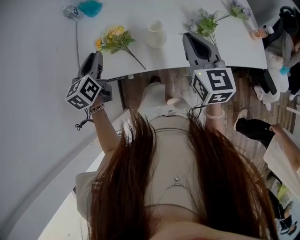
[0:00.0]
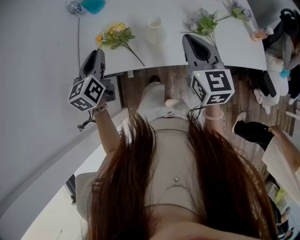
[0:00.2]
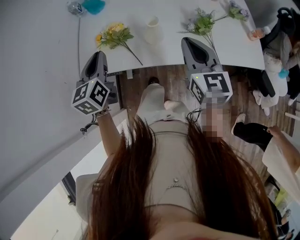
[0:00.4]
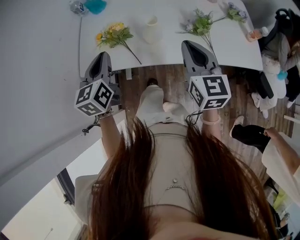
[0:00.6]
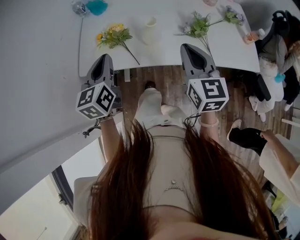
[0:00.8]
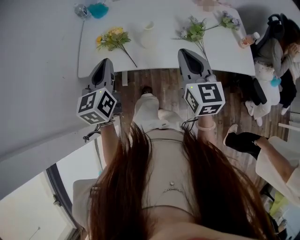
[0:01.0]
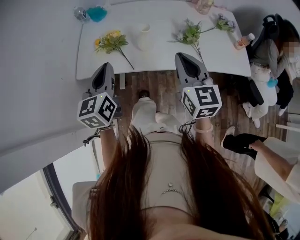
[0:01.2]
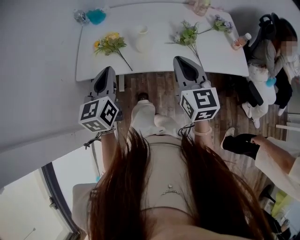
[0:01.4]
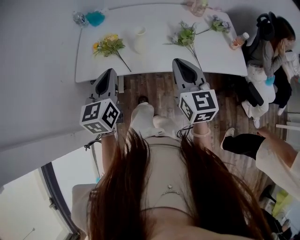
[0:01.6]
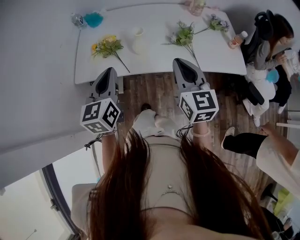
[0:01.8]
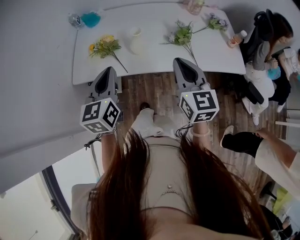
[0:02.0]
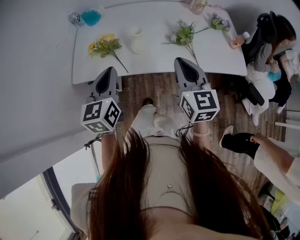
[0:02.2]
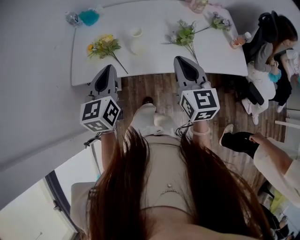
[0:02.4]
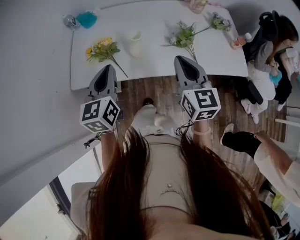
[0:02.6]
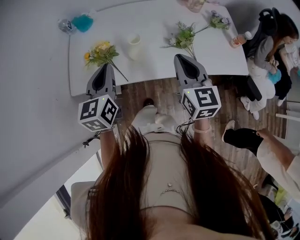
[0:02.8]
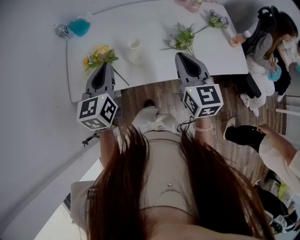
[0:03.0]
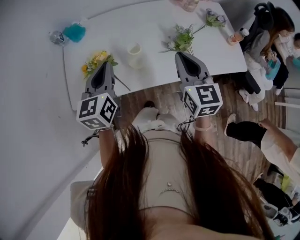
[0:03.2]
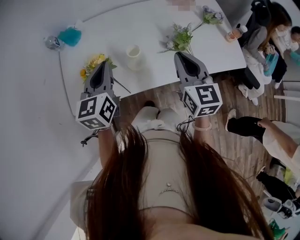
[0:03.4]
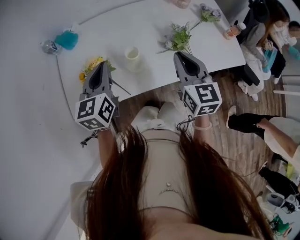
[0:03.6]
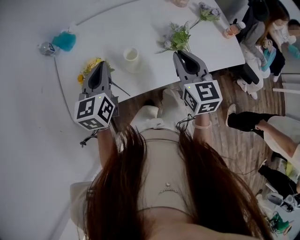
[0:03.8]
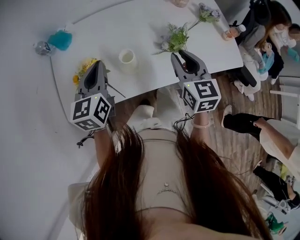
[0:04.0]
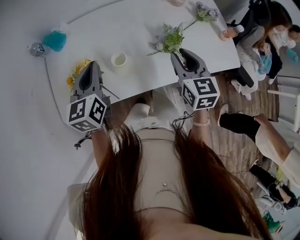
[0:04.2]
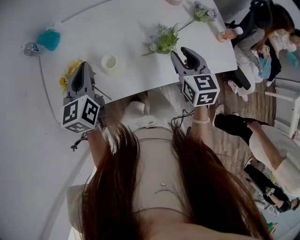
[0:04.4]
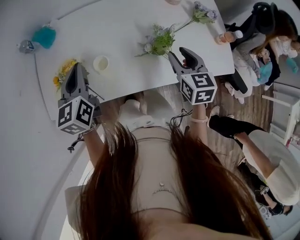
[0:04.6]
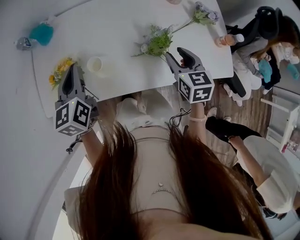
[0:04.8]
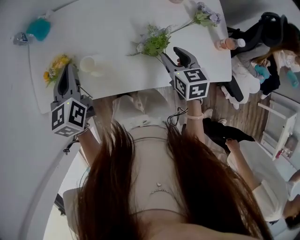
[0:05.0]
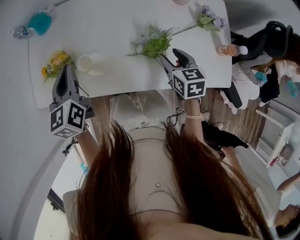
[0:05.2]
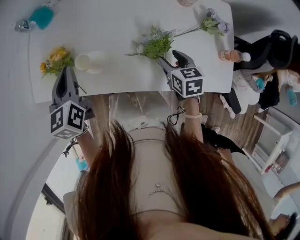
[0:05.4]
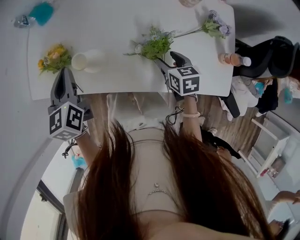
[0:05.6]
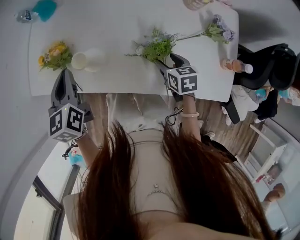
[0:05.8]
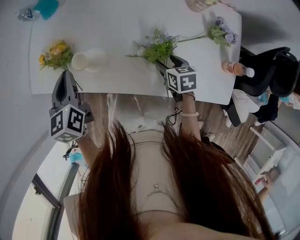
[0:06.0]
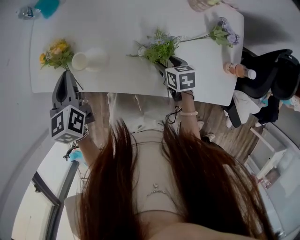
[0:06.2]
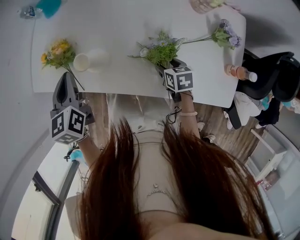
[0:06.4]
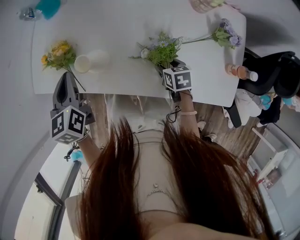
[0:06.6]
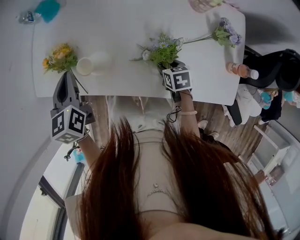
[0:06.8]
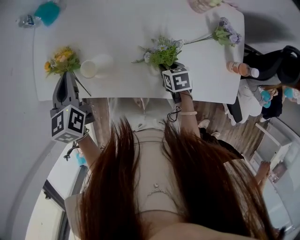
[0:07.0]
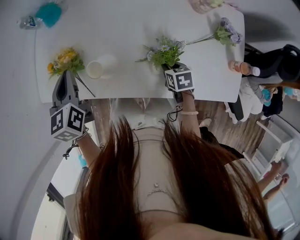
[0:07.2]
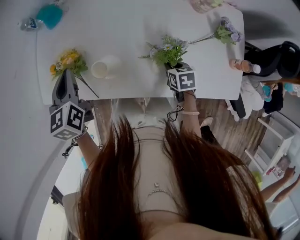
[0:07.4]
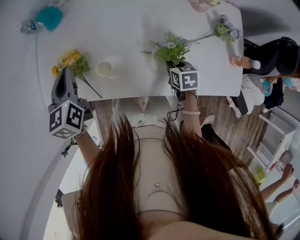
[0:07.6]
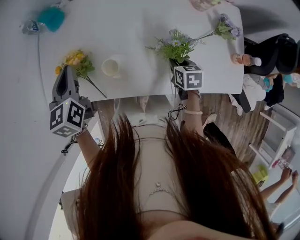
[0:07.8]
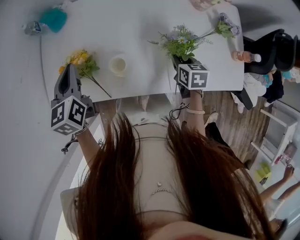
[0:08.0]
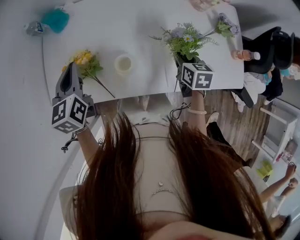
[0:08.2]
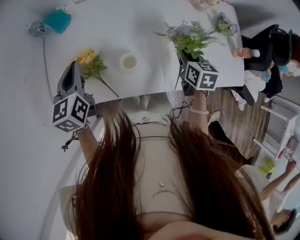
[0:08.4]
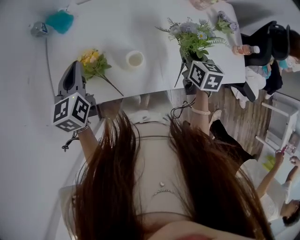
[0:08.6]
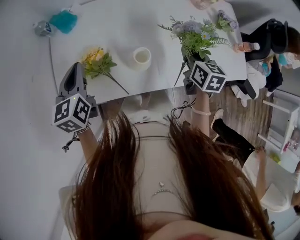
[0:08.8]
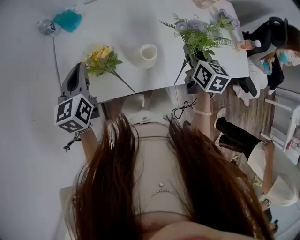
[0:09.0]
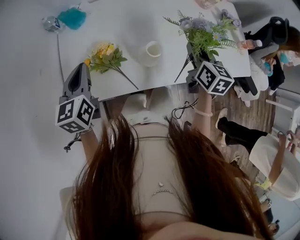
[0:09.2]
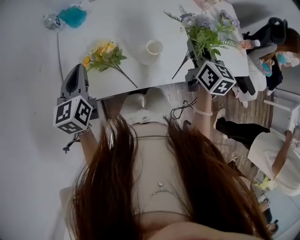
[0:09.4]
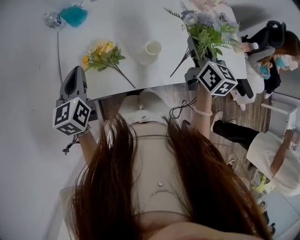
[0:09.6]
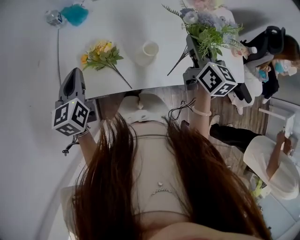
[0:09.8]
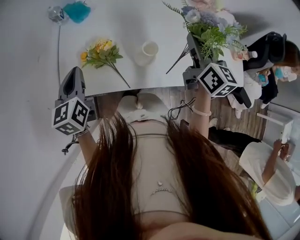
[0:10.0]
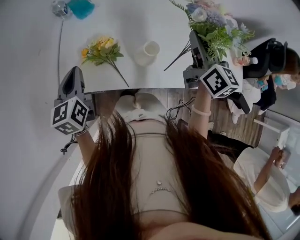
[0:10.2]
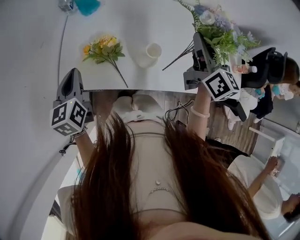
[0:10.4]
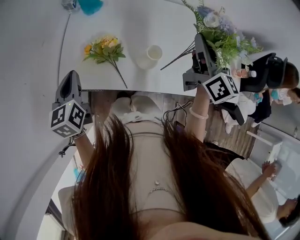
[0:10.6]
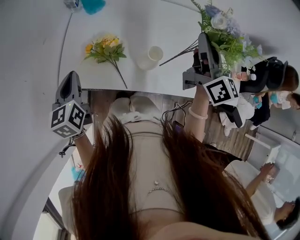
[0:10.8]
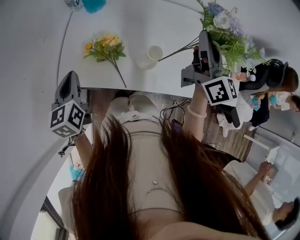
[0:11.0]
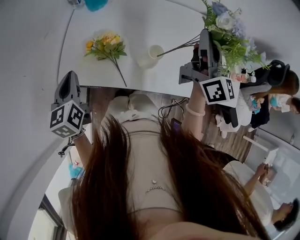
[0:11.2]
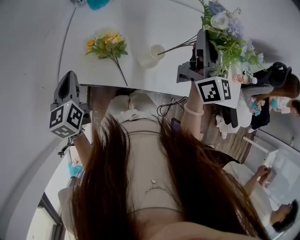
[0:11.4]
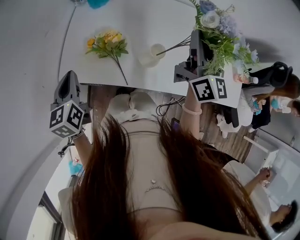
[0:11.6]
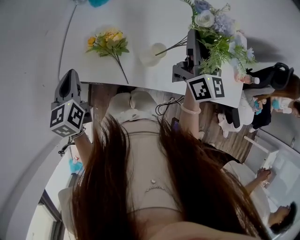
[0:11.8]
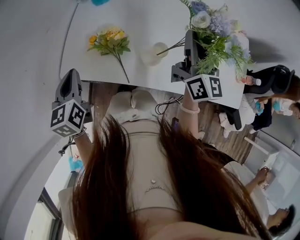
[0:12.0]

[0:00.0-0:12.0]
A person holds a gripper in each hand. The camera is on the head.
0:00.0 to 0:01.6: The right gripper travels backward by about 15 cm, while the left gripper travels backward, to the right and upward by approximately 25 cm.
0:01.6 to 0:03.0: The grippers both shift forward by about 15 cm.
0:03.0 to 0:04.4: The right gripper is displaced forward, to the right and downward by about 15 cm, and opens its fingers. Meanwhile the left gripper shifts some 10 cm forward.
0:04.4 to 0:06.0: The right gripper travels downward by roughly 20 cm, changes its angle by some 40 degrees, and opens. The left gripper heads downward, covering about 5 cm, and swivels some 30 degrees.
0:06.0 to 0:07.6: The right gripper closes its fingers, while the left gripper goes about 10 cm forward.
0:07.6 to 0:09.0: The right gripper is displaced upward and to the left by roughly 20 cm, and changes its angle by roughly 40 degrees; the left gripper moves to the left, roughly 10 cm.
0:09.0 to 0:10.4: The right gripper is displaced upward by about 15 cm, and turns by some 30 degrees. Meanwhile the left gripper is displaced backward by some 10 cm.
0:10.4 to 0:12.0: The grippers stay close to where they were, moving slightly.

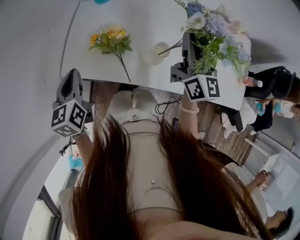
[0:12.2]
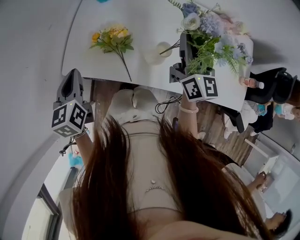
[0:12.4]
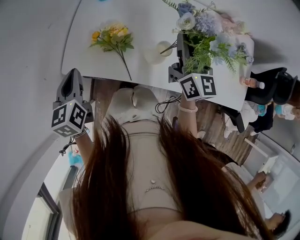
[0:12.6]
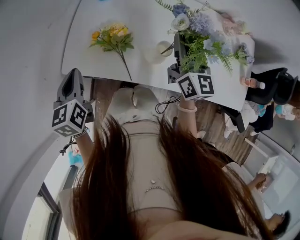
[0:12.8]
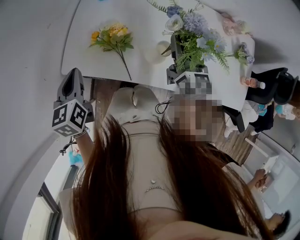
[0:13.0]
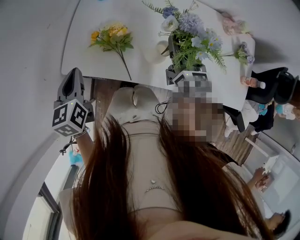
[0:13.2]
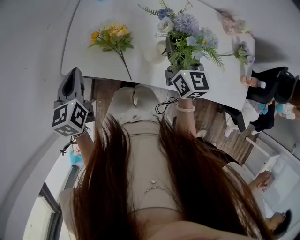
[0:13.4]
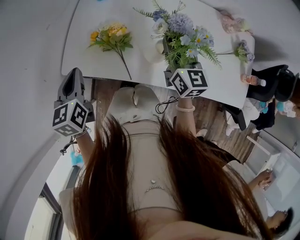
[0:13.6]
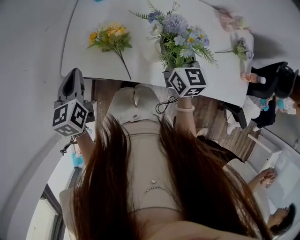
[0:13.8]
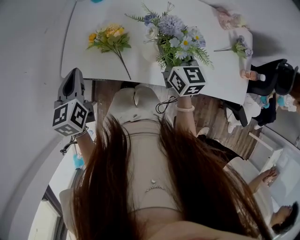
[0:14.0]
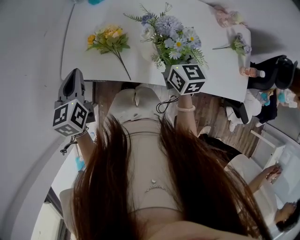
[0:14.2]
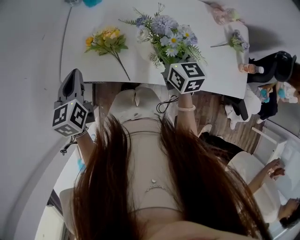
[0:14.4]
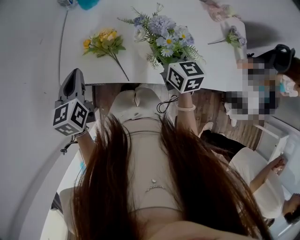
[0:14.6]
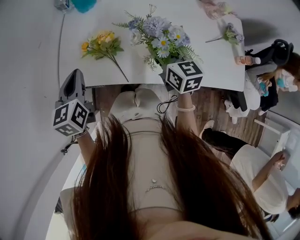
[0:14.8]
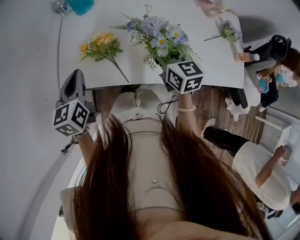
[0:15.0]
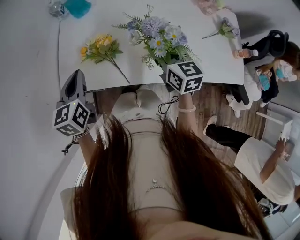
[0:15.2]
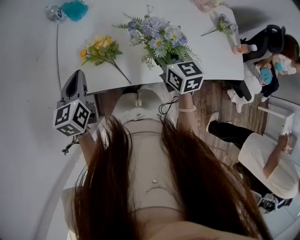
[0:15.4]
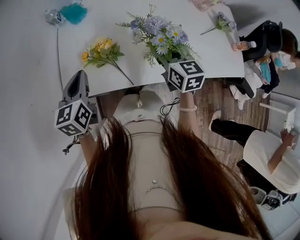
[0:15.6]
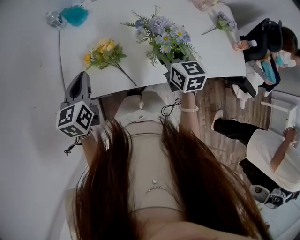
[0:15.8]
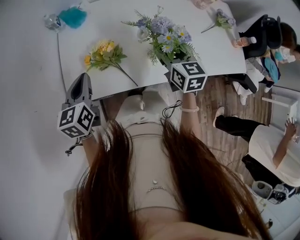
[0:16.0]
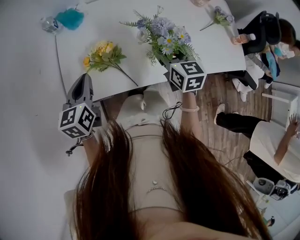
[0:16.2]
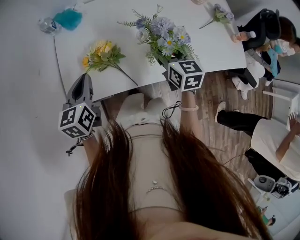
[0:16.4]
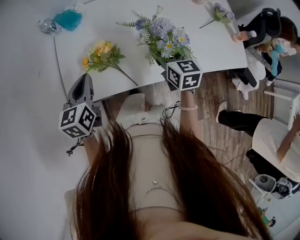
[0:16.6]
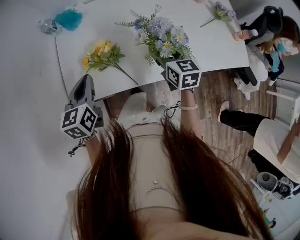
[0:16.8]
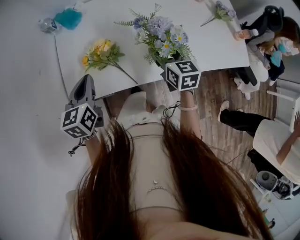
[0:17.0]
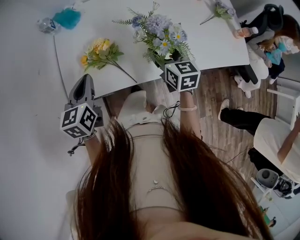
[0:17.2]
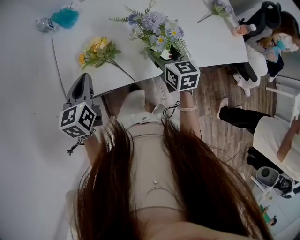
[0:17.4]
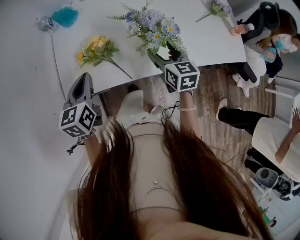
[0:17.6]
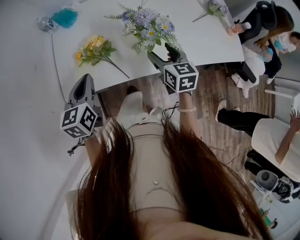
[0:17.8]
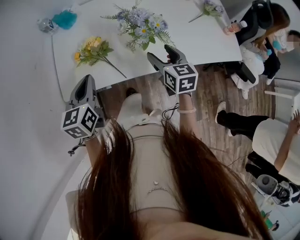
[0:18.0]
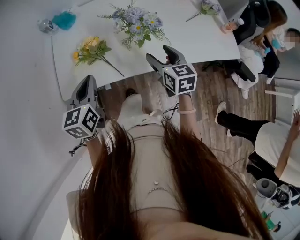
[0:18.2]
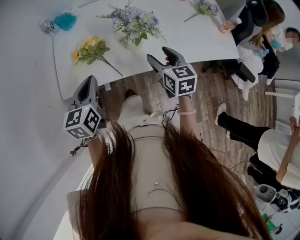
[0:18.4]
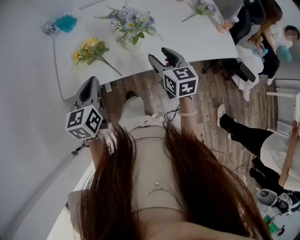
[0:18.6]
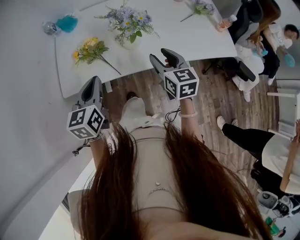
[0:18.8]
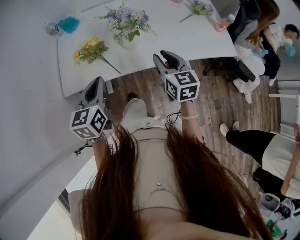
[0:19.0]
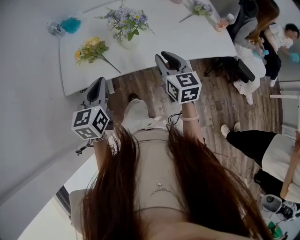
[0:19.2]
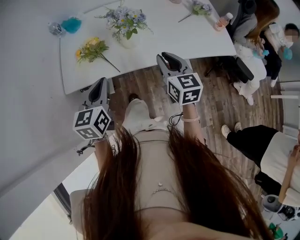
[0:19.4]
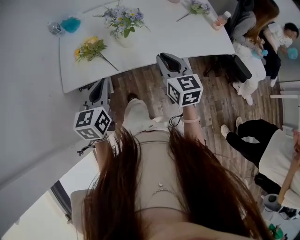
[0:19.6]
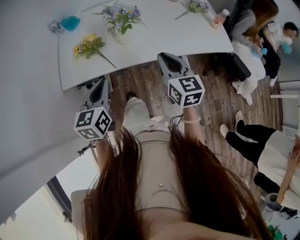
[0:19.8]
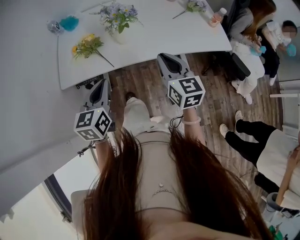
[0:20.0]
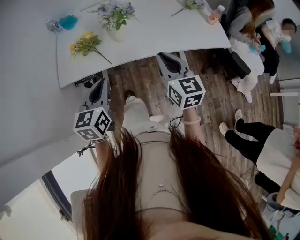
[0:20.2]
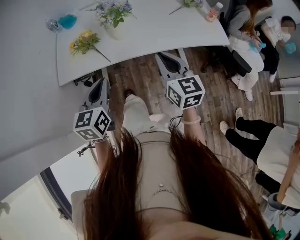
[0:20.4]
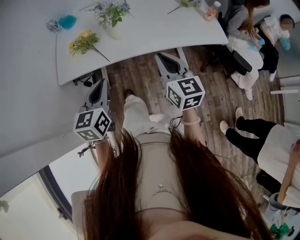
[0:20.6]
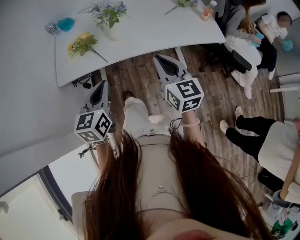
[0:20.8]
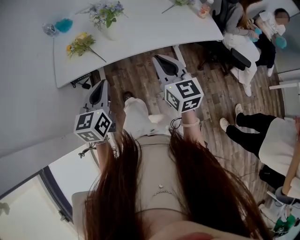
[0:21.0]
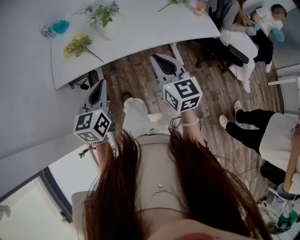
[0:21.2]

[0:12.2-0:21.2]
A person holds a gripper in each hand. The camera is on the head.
0:12.2 to 0:13.8: The right gripper heads downward and to the left, covering roughly 10 cm, and swivels about 20 degrees.
0:13.8 to 0:15.2: The grippers move only a little.
0:15.2 to 0:16.6: The grippers stay close to where they were, moving slightly.
0:16.6 to 0:18.2: The right gripper goes roughly 10 cm backward. The left gripper shifts approximately 10 cm backward and to the right.
0:18.2 to 0:19.8: The left gripper is displaced backward and to the right by roughly 15 cm; the right gripper heads backward, upward and to the right, covering about 15 cm, and closes.
0:19.8 to 0:21.2: Both grippers travel together backward, approximately 10 cm.

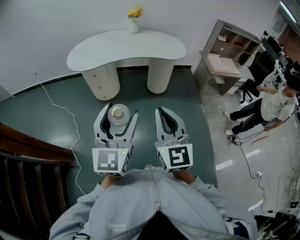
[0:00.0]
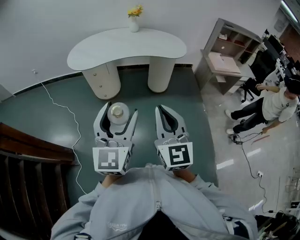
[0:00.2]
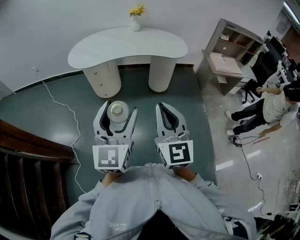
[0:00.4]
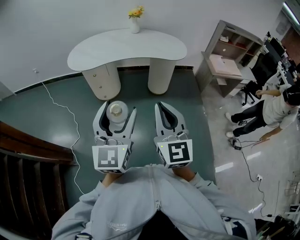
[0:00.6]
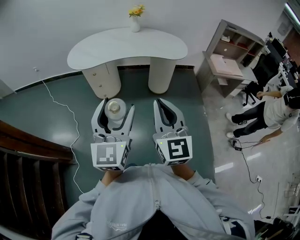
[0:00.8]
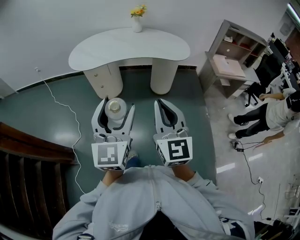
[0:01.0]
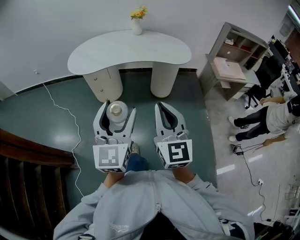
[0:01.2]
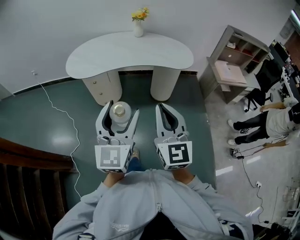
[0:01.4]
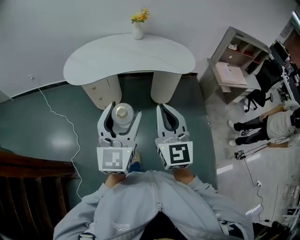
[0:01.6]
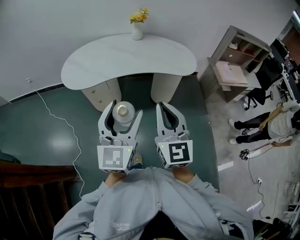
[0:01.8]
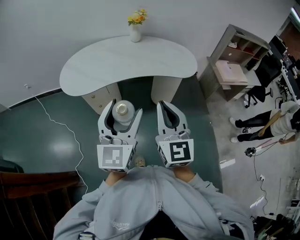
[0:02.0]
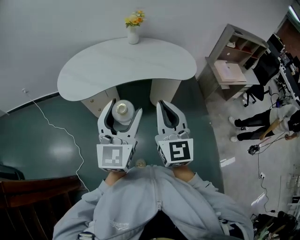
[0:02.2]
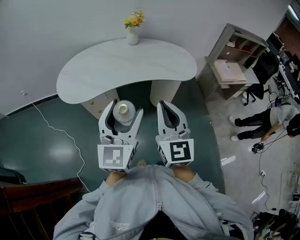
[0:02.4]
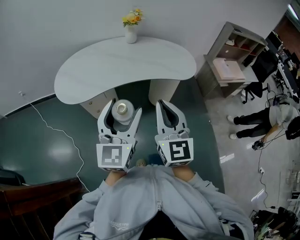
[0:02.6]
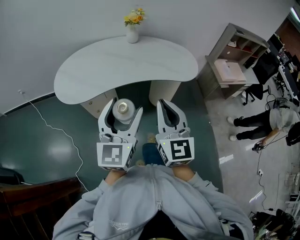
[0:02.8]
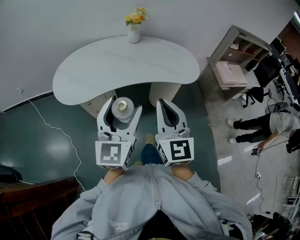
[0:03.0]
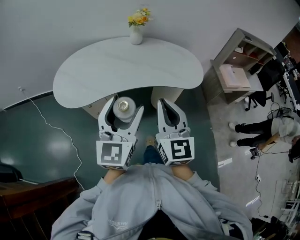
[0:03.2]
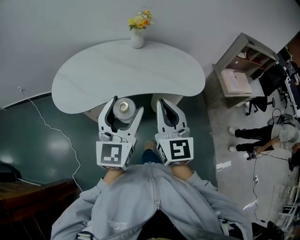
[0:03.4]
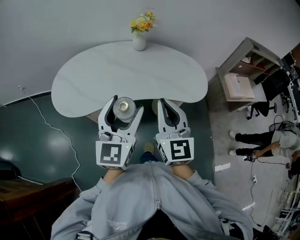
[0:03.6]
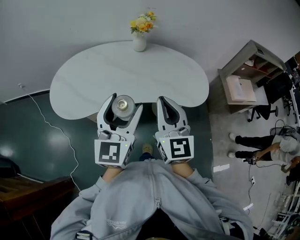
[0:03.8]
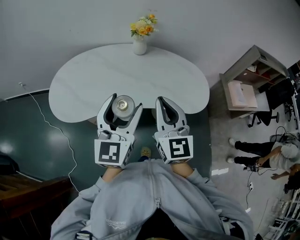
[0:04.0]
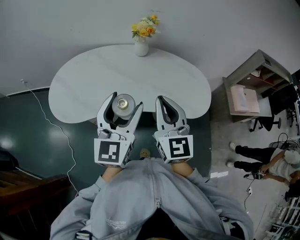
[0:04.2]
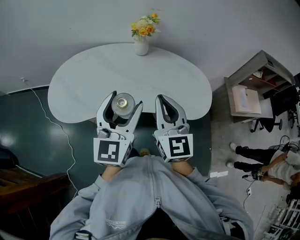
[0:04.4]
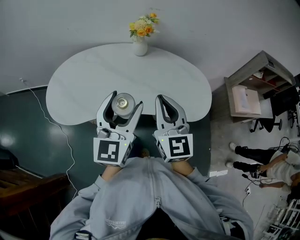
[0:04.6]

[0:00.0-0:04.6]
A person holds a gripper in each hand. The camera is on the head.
0:00.0 to 0:01.6: Both grippers move forward, approximately 20 cm.
0:01.6 to 0:03.0: The two grippers go roughly 20 cm forward.
0:03.0 to 0:04.6: Both grippers move forward, about 25 cm.
